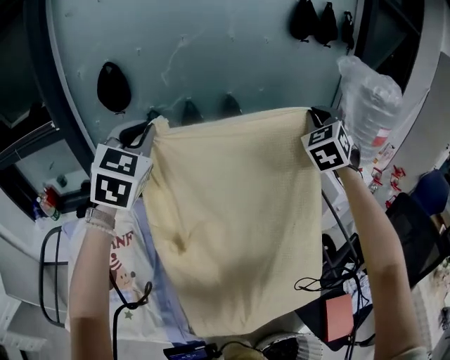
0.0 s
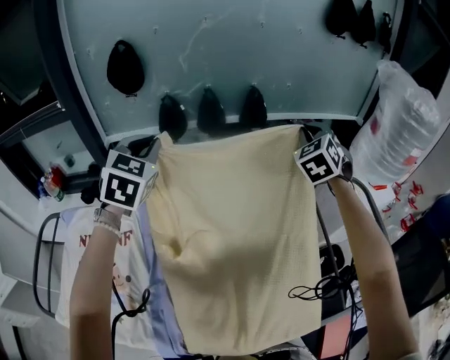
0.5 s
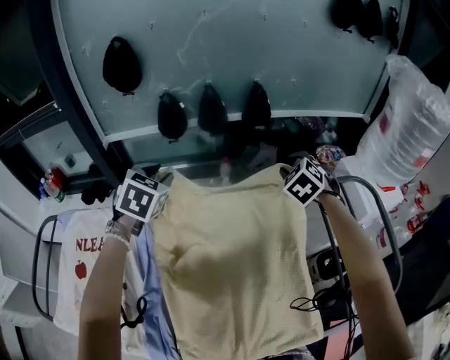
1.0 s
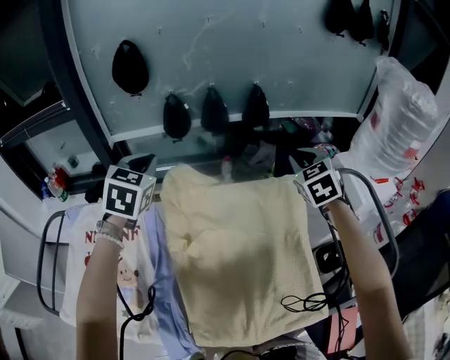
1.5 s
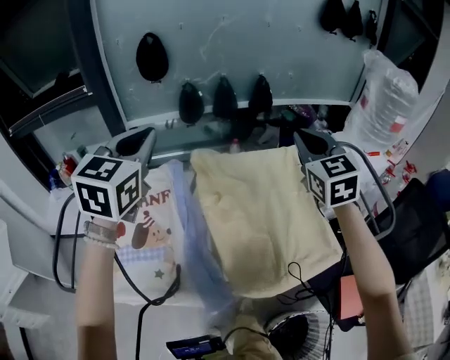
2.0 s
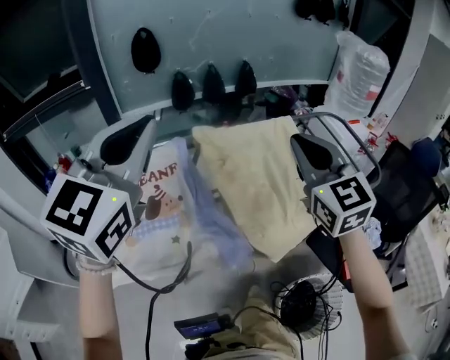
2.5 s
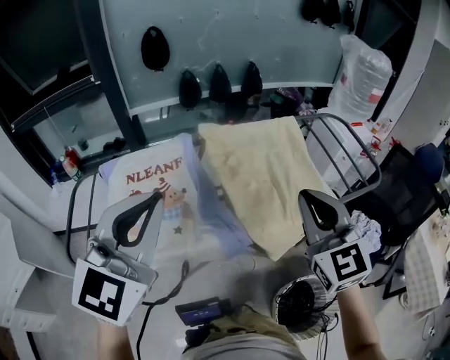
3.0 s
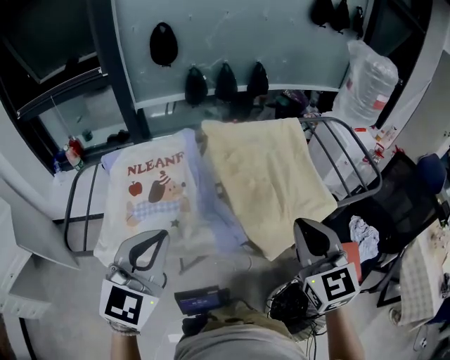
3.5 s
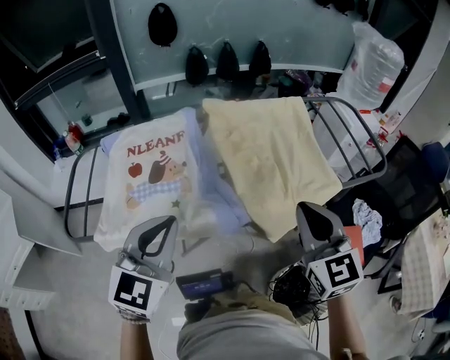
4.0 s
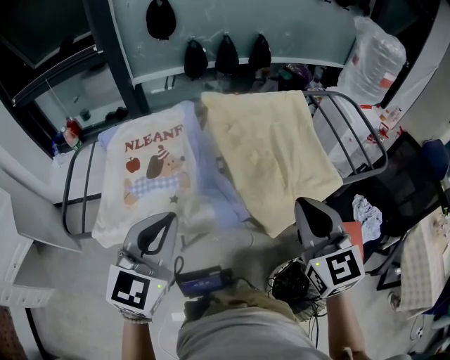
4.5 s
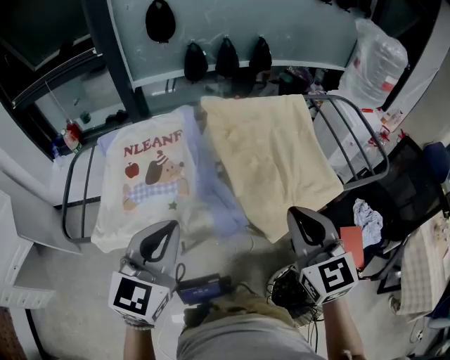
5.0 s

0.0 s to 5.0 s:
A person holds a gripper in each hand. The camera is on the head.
0.0 to 2.5 s: The left gripper travels backward by roughly 30 cm, turns by approximately 20 degrees, and opens, then closes once more, while the right gripper is displaced backward and to the left by roughly 40 cm, changes its angle by approximately 40 degrees, and opens and closes again.
2.5 to 5.0 s: The right gripper heads backward and downward, covering approximately 20 cm; the left gripper moves downward and backward, roughly 25 cm.

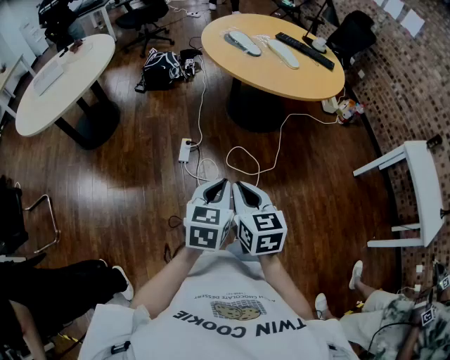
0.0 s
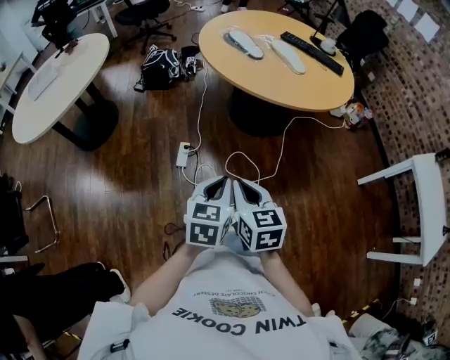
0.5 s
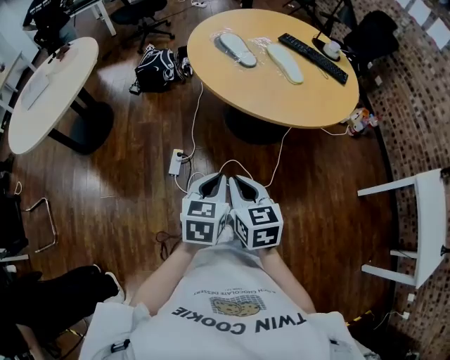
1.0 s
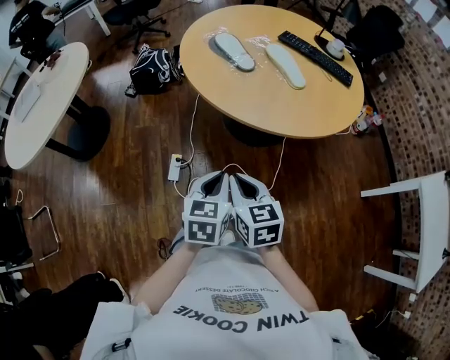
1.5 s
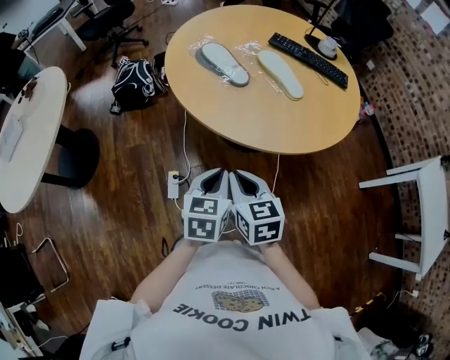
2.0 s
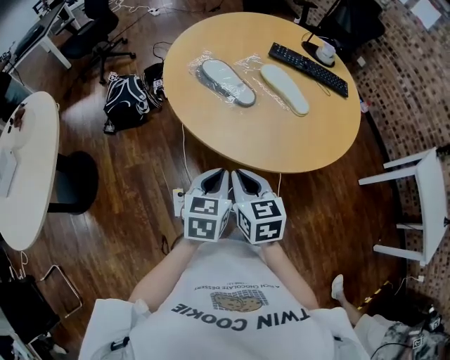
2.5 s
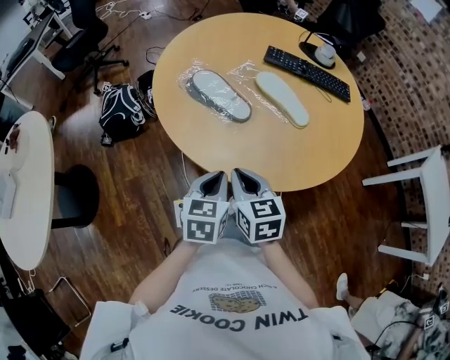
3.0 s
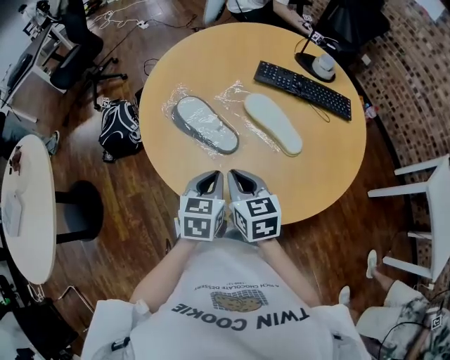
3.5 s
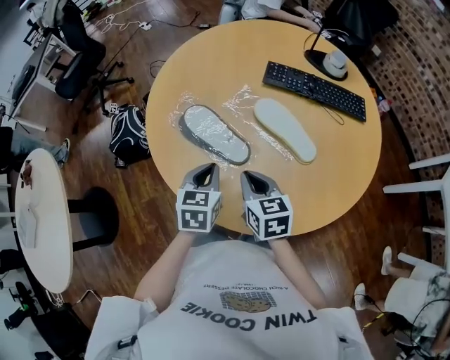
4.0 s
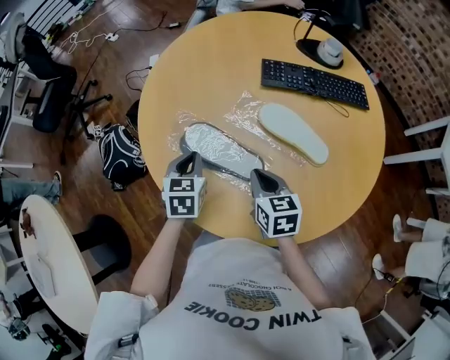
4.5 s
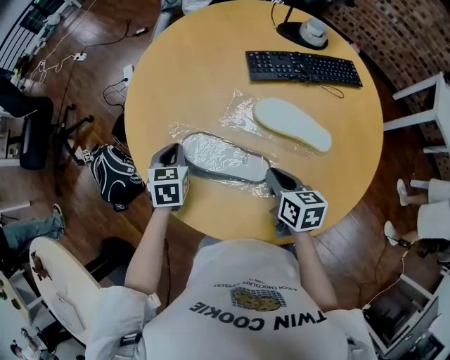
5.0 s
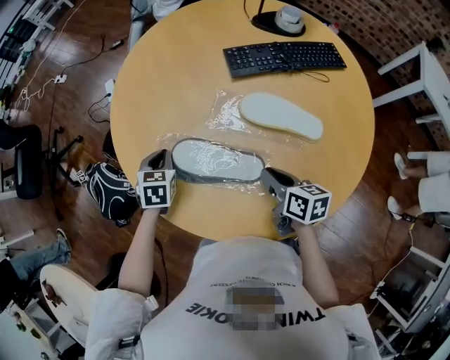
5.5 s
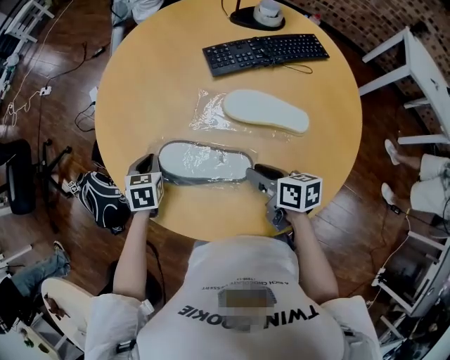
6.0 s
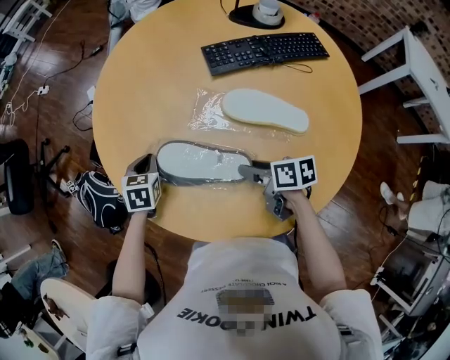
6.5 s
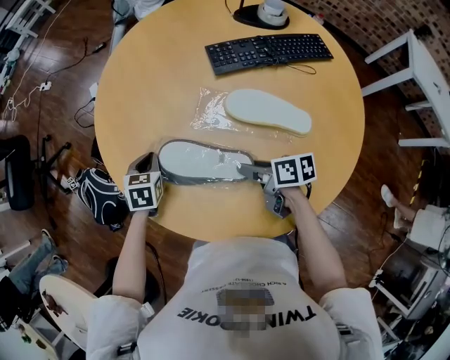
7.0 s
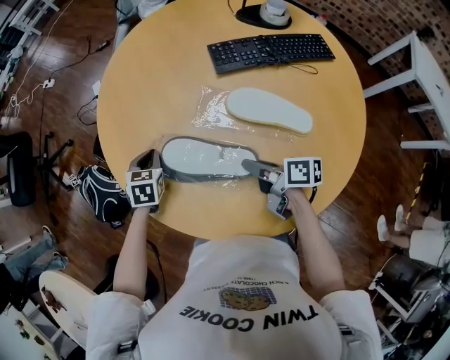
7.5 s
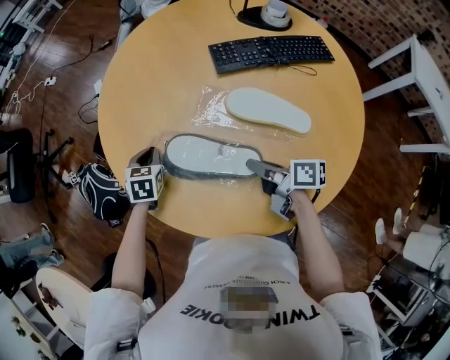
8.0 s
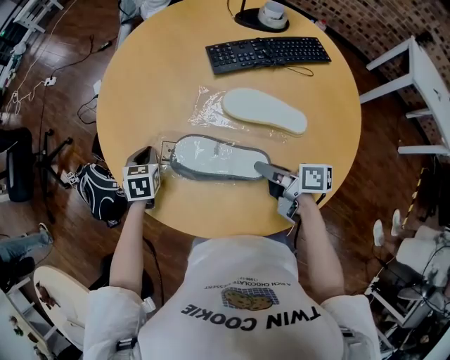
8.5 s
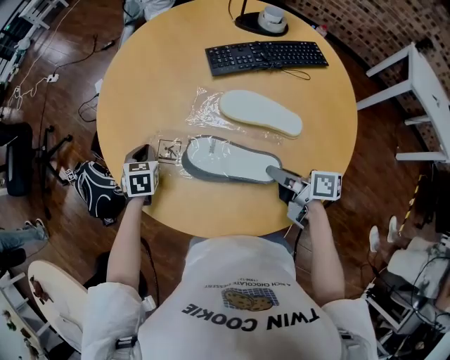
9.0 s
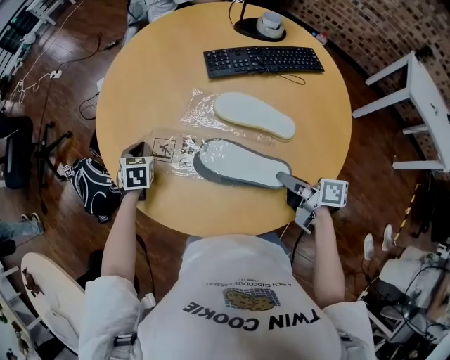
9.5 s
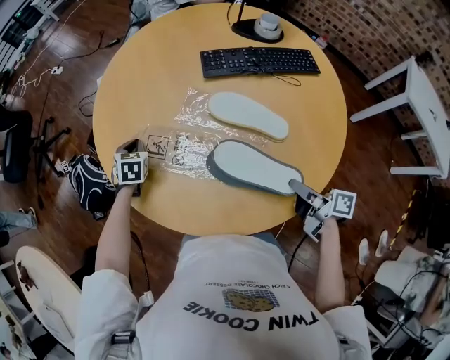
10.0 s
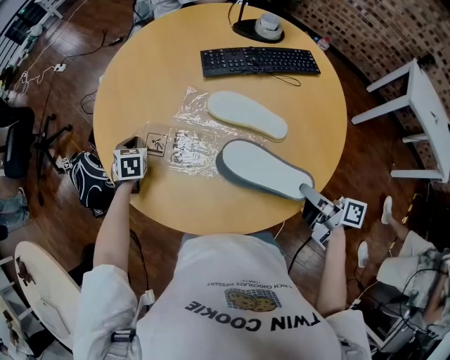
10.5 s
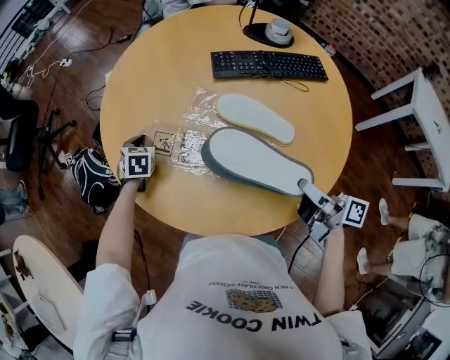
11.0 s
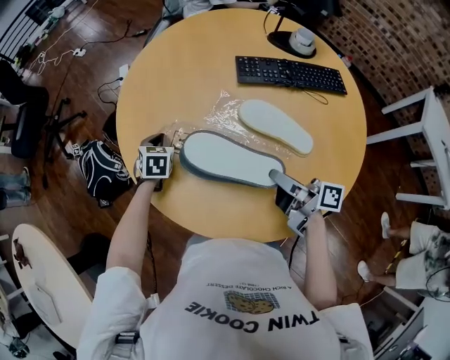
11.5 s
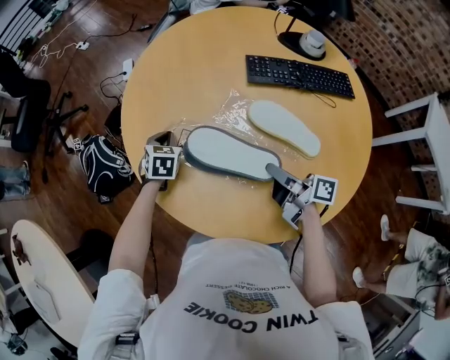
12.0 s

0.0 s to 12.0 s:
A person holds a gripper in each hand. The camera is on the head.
0.0 to 2.0 s: Both grippers are carried forward, about 50 cm.
2.0 to 4.0 s: Both grippers move forward, roughly 35 cm.
4.0 to 6.0 s: The right gripper moves downward and forward, roughly 10 cm, twists about 40 degrees clockwise, seen from behind, and opens up; the left gripper goes roughly 30 cm forward, to the left and downward, and turns by approximately 30 degrees.
6.0 to 8.0 s: The right gripper changes its angle by approximately 20 degrees.
8.0 to 10.0 s: The right gripper moves backward and to the right, some 20 cm.
10.0 to 12.0 s: The right gripper is displaced forward and to the left by approximately 20 cm.

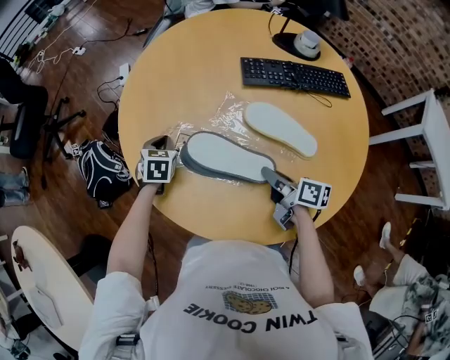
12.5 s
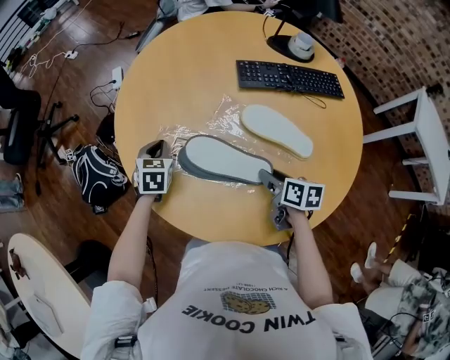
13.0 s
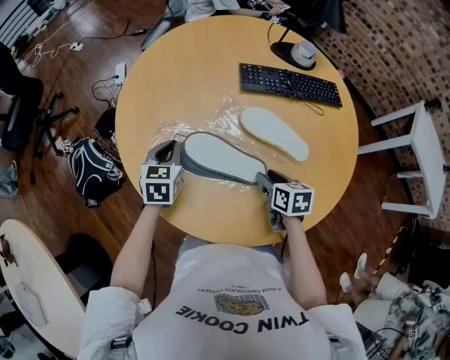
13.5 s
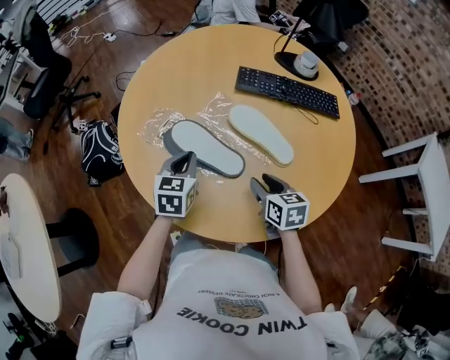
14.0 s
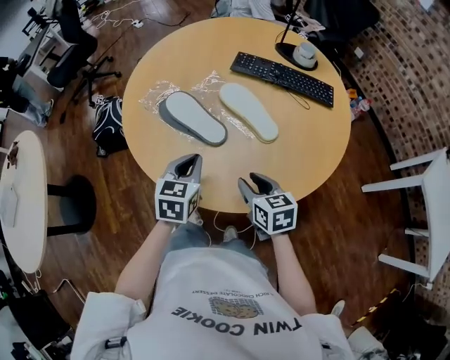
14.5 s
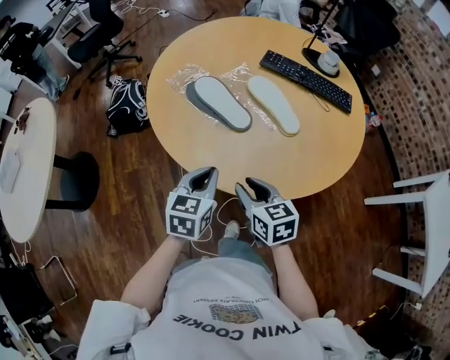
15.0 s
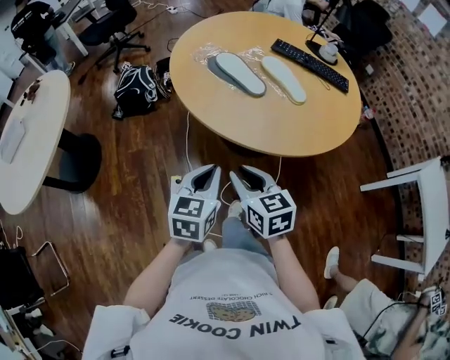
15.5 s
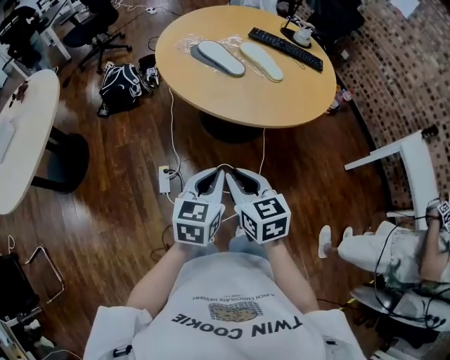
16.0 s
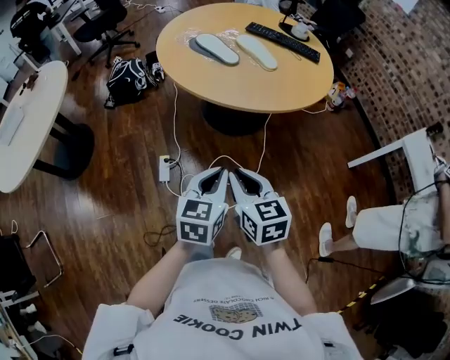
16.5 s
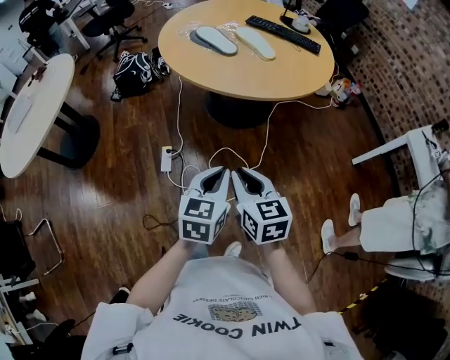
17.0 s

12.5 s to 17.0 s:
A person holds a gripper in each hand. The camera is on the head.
12.5 to 14.5 s: The left gripper goes some 40 cm backward and to the right, and rotates approximately 20 degrees, while the right gripper shifts approximately 20 cm backward and to the right, and rolls counterclockwise, seen from behind, by roughly 50 degrees.
14.5 to 17.0 s: The two grippers travel together, backward, about 50 cm. The right gripper closes up.

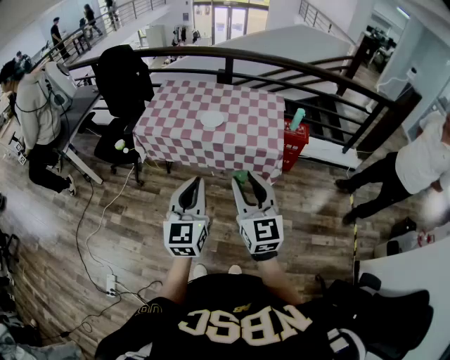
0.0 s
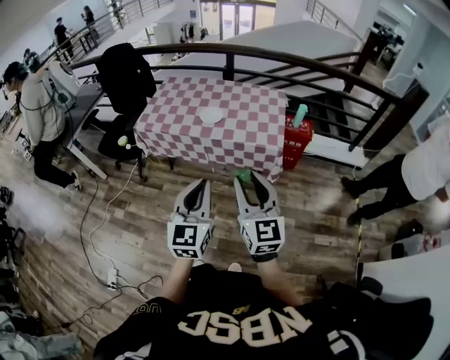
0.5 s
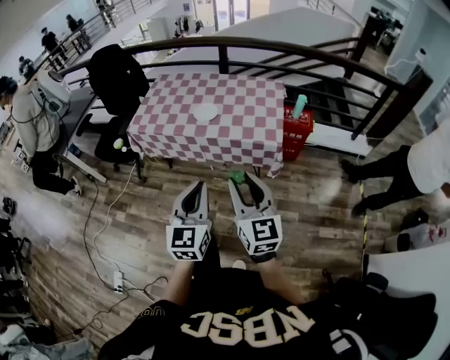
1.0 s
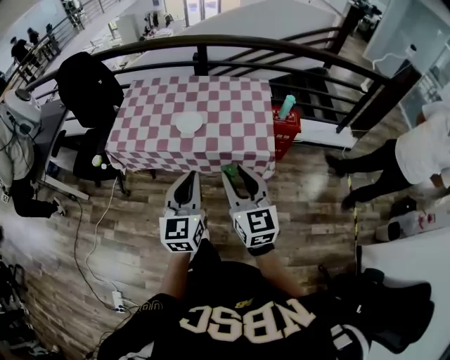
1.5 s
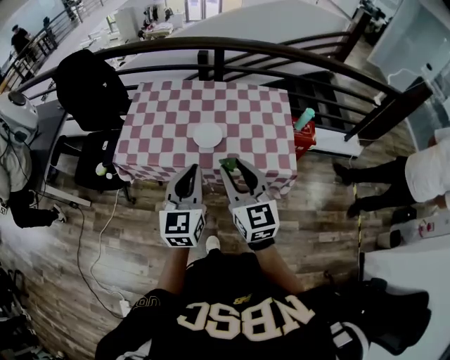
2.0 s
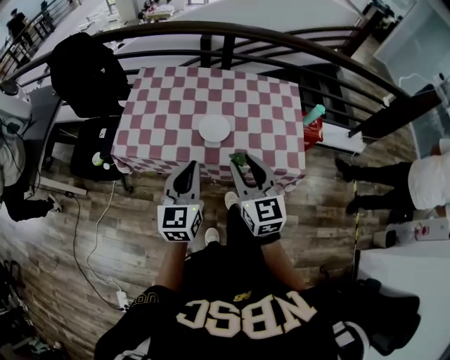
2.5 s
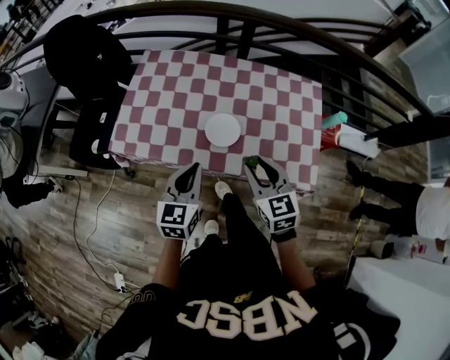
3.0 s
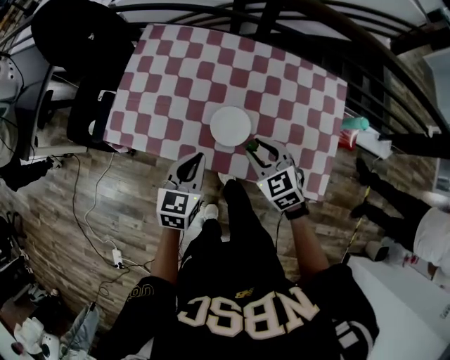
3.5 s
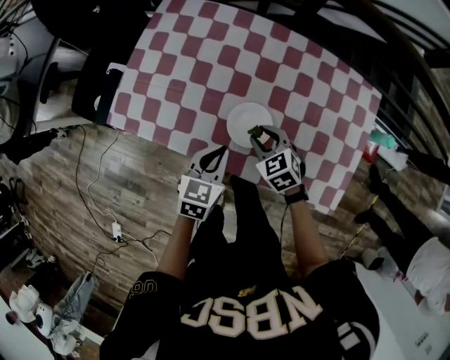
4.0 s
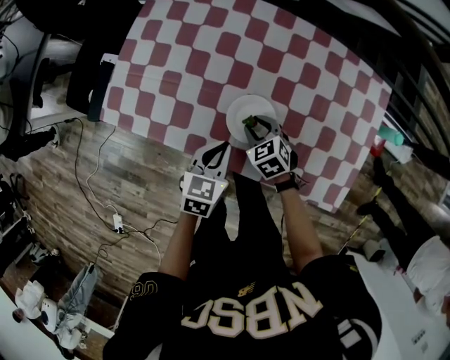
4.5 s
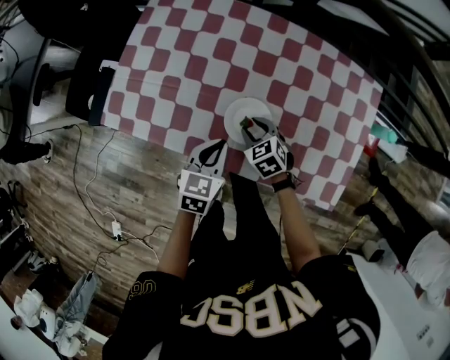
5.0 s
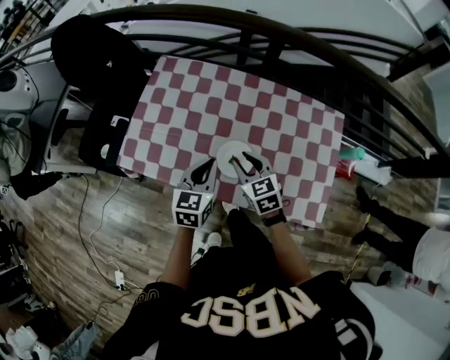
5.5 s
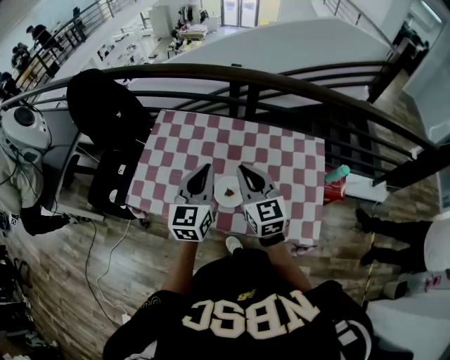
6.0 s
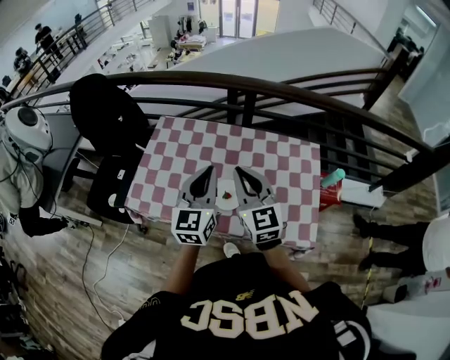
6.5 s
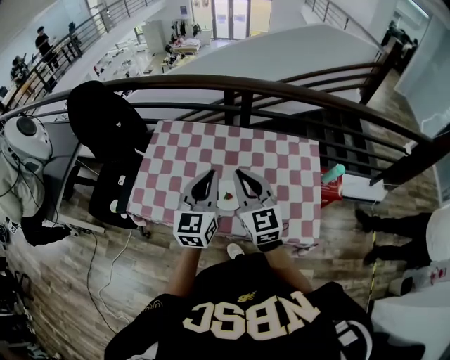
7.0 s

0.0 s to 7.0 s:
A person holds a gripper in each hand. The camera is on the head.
0.0 to 2.0 s: Both grippers travel together forward, roughly 30 cm.
2.0 to 3.5 s: The left gripper shifts approximately 30 cm downward and forward, and changes its angle by some 30 degrees. The right gripper shifts approximately 35 cm forward and downward, and points its fingers about 40 degrees further downward.
3.5 to 5.0 s: The right gripper goes about 15 cm downward, while the left gripper heads downward, covering roughly 10 cm.
5.0 to 7.0 s: The grippers both shift upward by approximately 35 cm. The right gripper tips its fingers upward by about 50 degrees, and closes its fingers, while the left gripper points its fingers about 40 degrees further upward.
